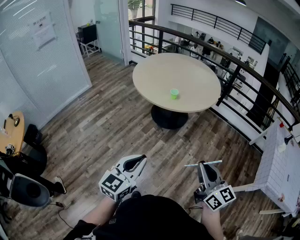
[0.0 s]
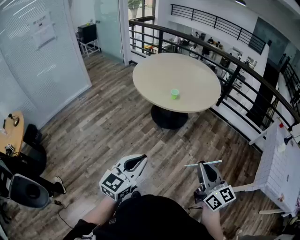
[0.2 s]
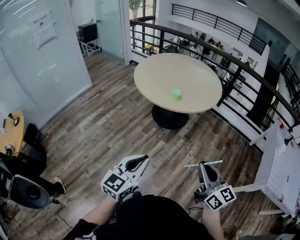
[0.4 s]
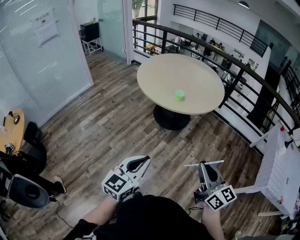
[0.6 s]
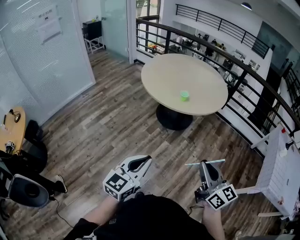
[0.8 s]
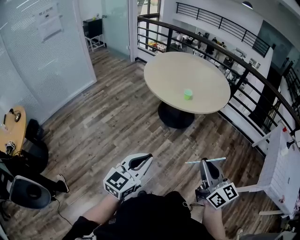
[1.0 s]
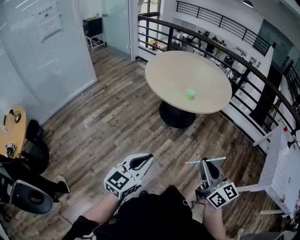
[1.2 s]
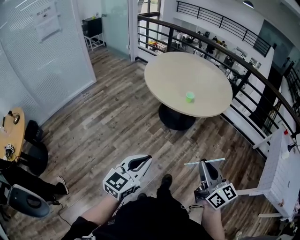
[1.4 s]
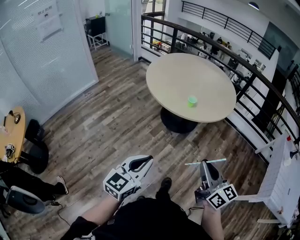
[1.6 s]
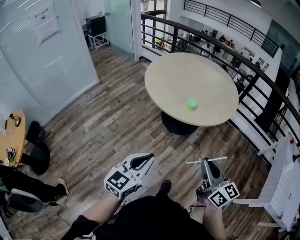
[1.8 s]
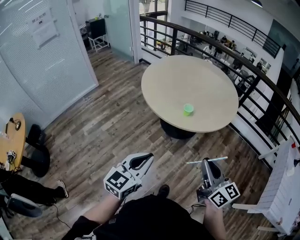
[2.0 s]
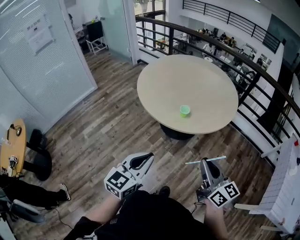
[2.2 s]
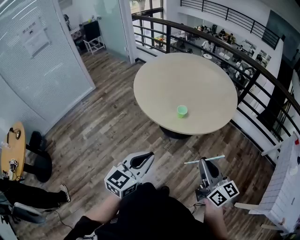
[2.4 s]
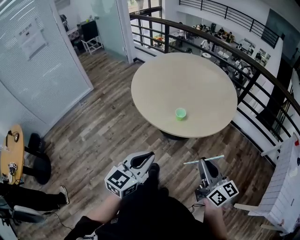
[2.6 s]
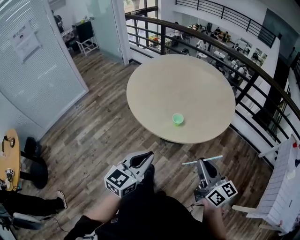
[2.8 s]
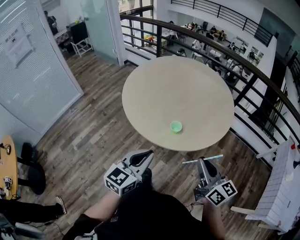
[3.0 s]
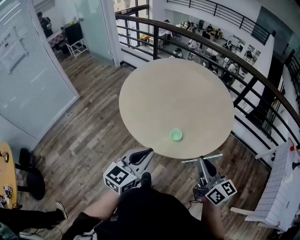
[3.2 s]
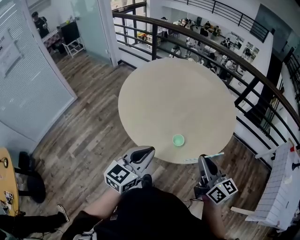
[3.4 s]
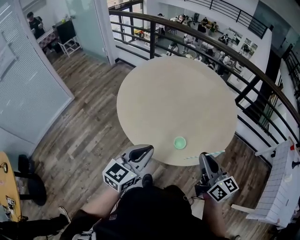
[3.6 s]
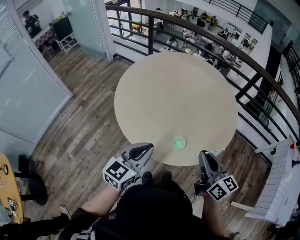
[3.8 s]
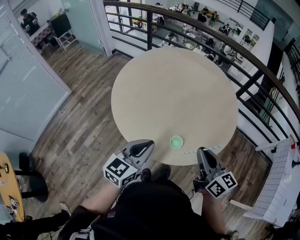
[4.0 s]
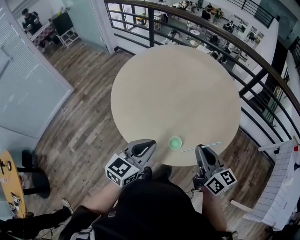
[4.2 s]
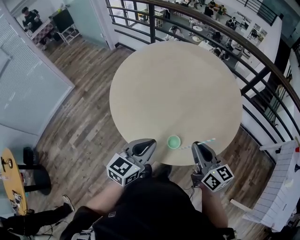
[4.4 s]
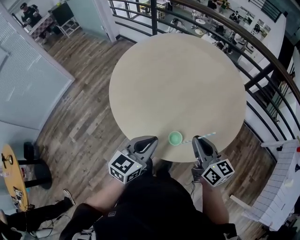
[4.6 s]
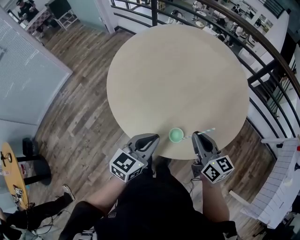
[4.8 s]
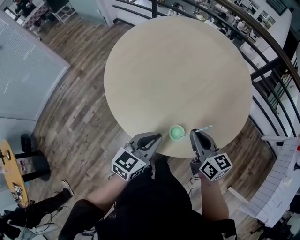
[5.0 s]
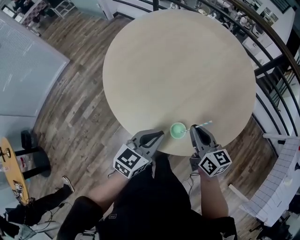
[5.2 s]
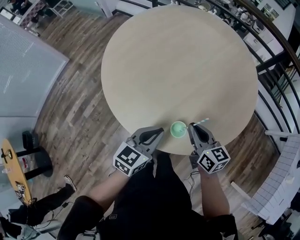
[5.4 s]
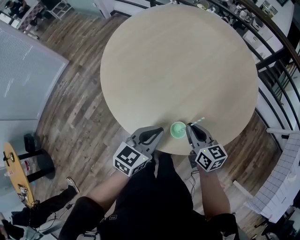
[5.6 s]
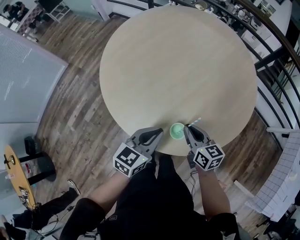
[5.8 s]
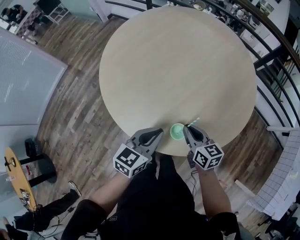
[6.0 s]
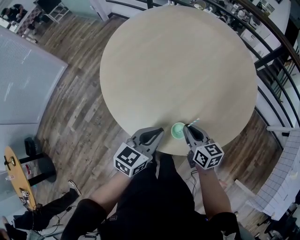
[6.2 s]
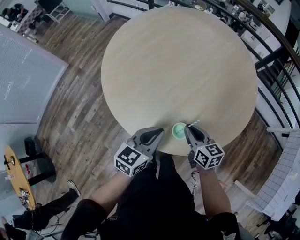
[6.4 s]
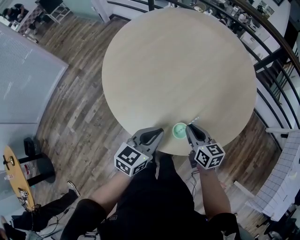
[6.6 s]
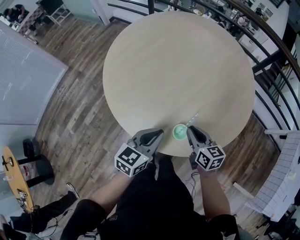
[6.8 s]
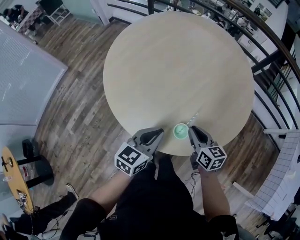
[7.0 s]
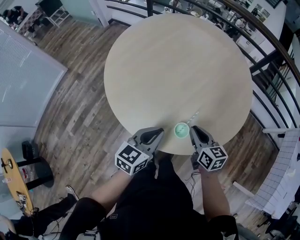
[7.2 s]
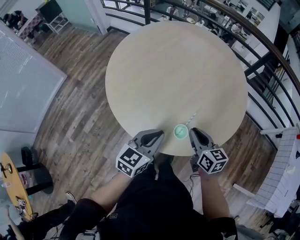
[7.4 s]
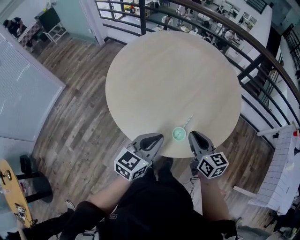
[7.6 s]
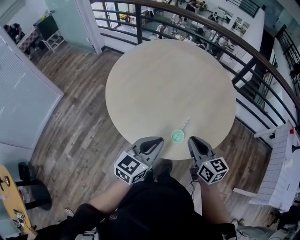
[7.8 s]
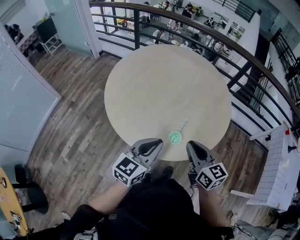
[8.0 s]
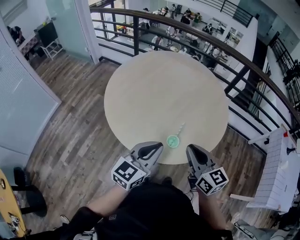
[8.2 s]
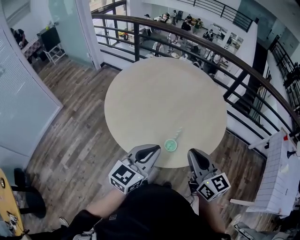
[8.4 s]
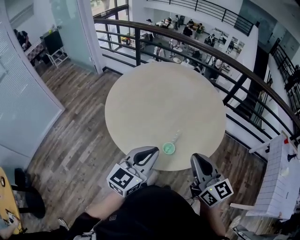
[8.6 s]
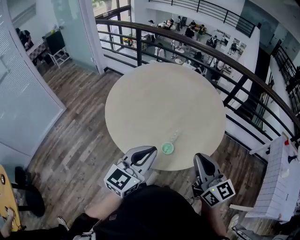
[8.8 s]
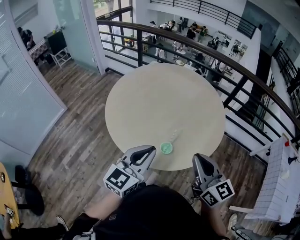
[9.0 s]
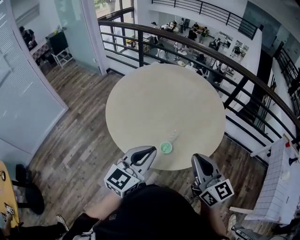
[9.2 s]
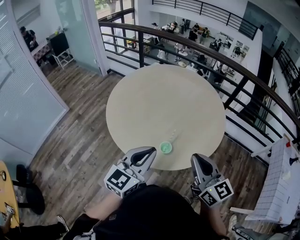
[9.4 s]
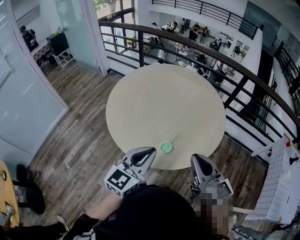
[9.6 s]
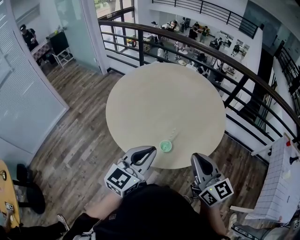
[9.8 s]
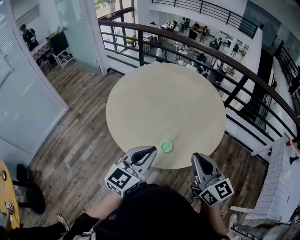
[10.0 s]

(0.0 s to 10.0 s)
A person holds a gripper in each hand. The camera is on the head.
0.0 s - 1.4 s: The right gripper moves to the left and forward, about 15 cm. Meanwhile the left gripper heads to the left, covering roughly 10 cm.
1.4 s - 2.8 s: Both grippers move forward, some 30 cm.
2.8 s - 4.2 s: Both grippers travel together forward, approximately 30 cm.
4.2 s - 5.8 s: The right gripper travels downward by approximately 20 cm. The left gripper shifts roughly 15 cm downward.
5.8 s - 7.2 s: The grippers stay close to where they were, moving slightly.
7.2 s - 8.6 s: Both grippers travel together upward and backward, some 25 cm. The right gripper changes its angle by roughly 30 degrees. Meanwhile the left gripper swivels approximately 20 degrees.
8.6 s - 10.0 s: There are only small adjustments of the grippers.

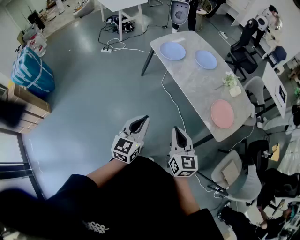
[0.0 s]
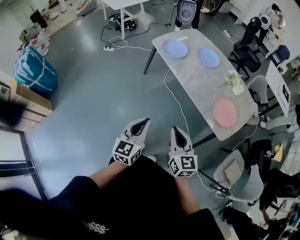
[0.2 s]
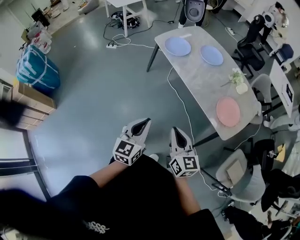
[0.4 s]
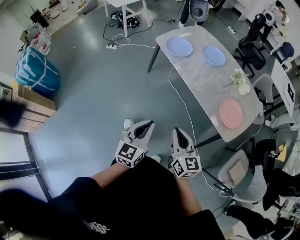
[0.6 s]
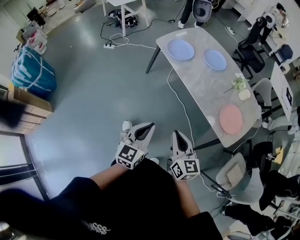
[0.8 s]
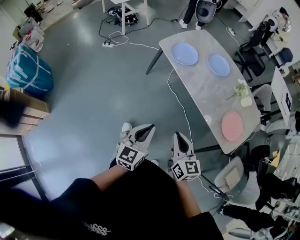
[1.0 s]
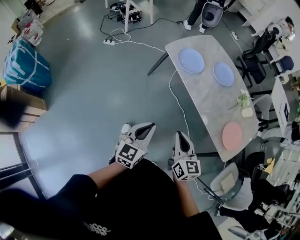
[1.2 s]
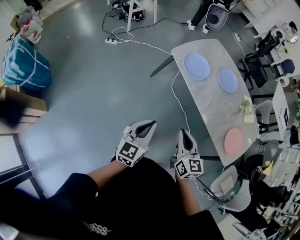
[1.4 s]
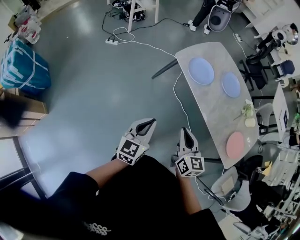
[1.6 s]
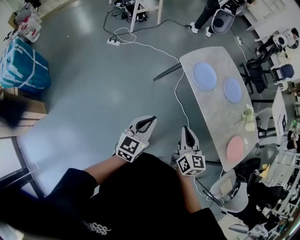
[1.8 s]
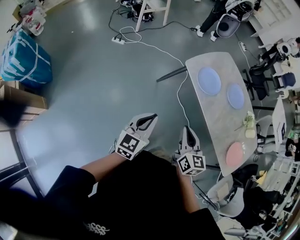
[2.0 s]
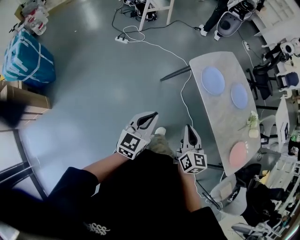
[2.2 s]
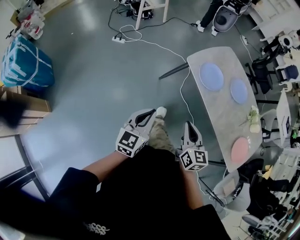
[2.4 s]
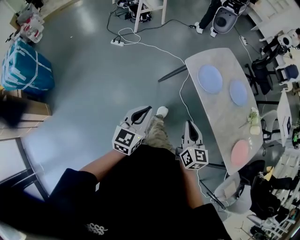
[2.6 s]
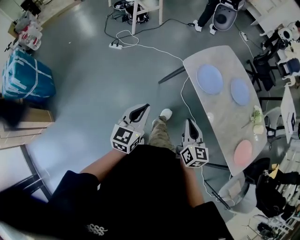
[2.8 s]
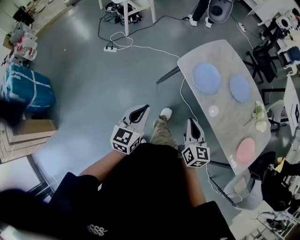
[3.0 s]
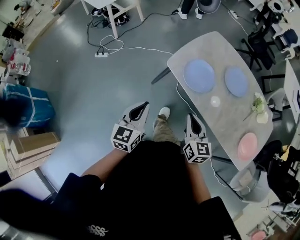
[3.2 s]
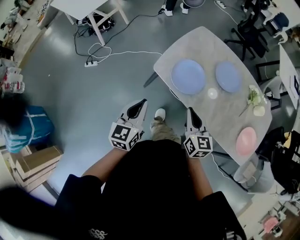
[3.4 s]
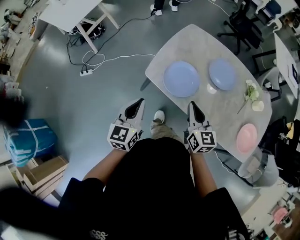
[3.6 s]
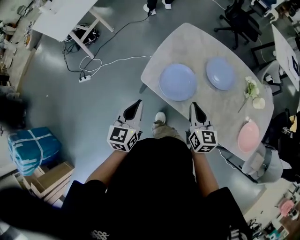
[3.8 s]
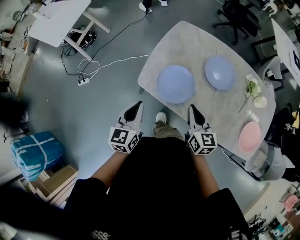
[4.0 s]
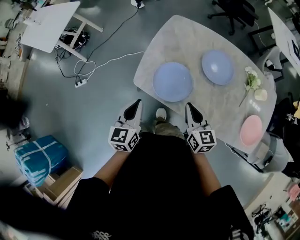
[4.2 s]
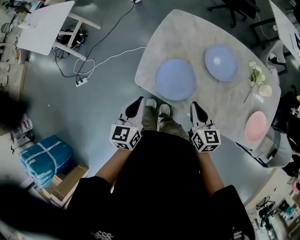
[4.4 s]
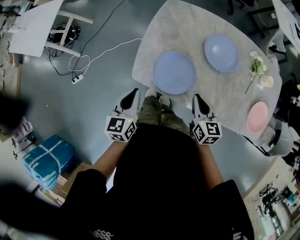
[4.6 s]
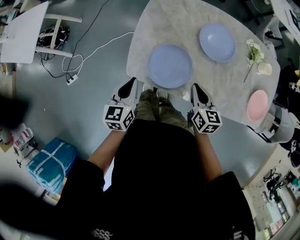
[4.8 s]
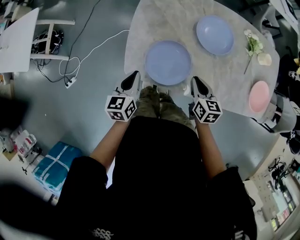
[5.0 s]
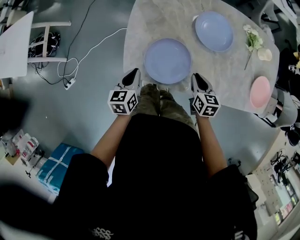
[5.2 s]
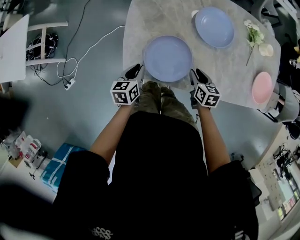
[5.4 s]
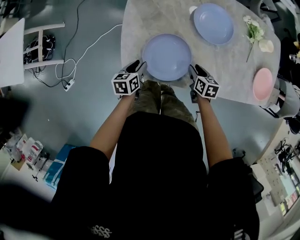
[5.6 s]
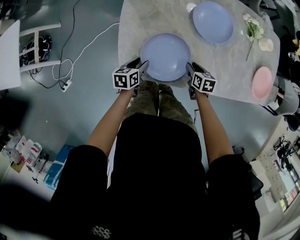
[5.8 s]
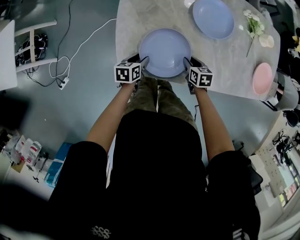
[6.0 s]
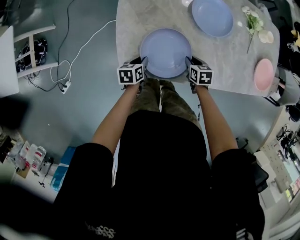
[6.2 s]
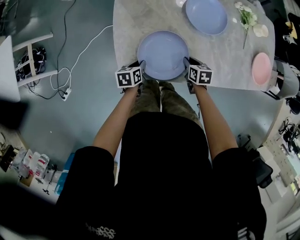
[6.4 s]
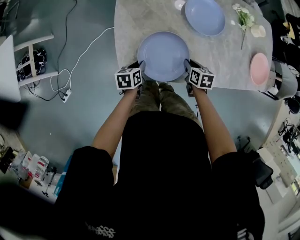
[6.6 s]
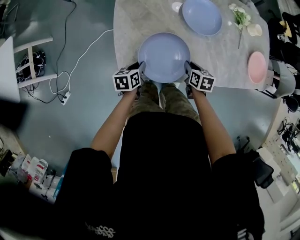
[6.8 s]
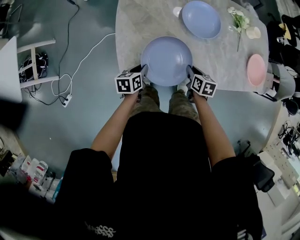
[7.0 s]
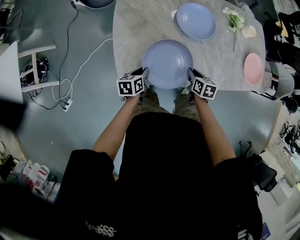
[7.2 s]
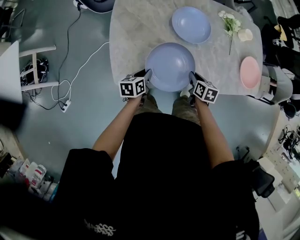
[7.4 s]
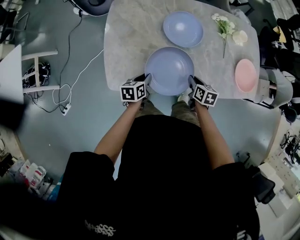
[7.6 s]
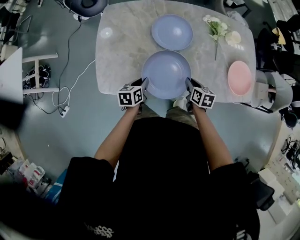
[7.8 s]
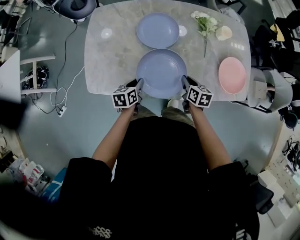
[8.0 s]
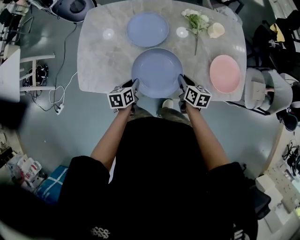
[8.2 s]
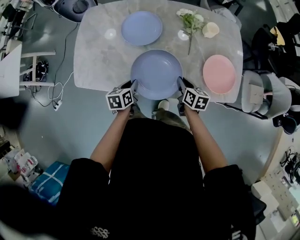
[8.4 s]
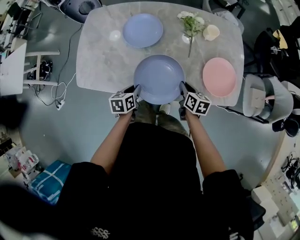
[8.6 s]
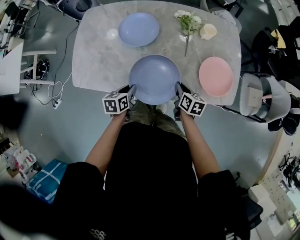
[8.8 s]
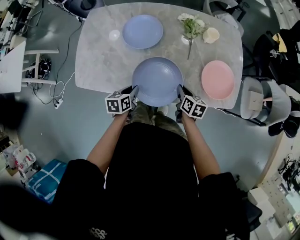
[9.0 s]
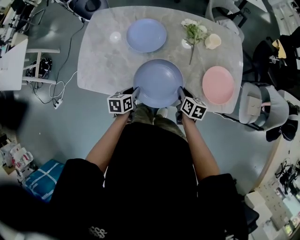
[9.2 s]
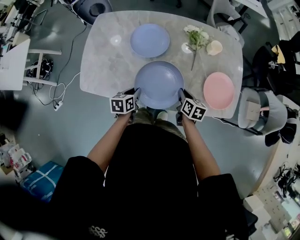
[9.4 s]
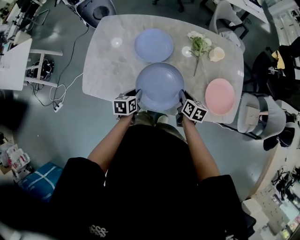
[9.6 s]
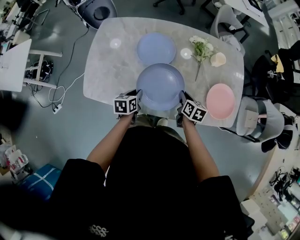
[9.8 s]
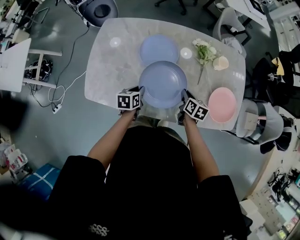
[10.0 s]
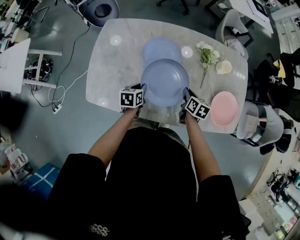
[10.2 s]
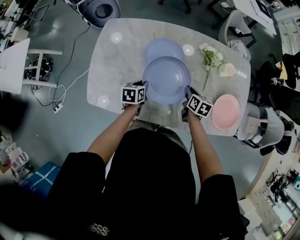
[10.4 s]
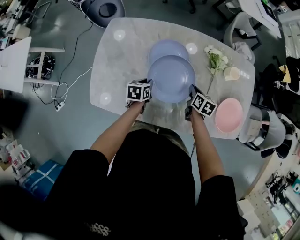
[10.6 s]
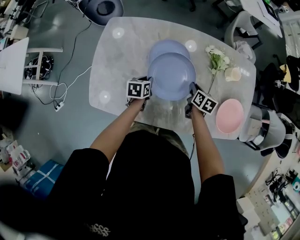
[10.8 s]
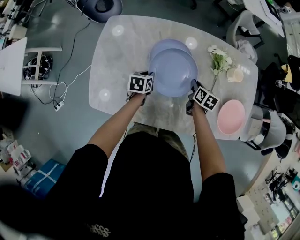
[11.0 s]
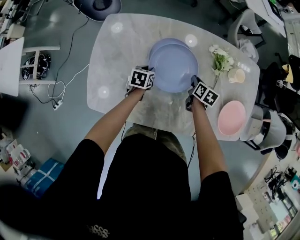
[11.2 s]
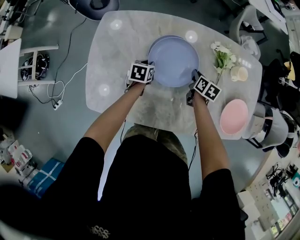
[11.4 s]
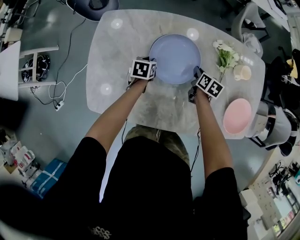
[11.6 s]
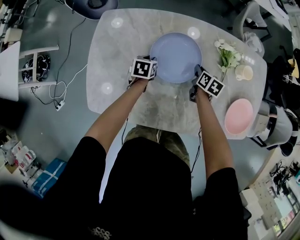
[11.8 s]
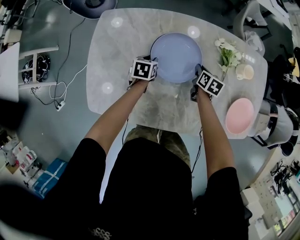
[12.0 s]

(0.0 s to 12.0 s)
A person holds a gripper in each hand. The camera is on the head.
0.0 s - 1.6 s: Both grippers move forward and to the left, some 35 cm.
1.6 s - 3.0 s: The right gripper is displaced forward by roughly 15 cm, while the left gripper travels forward and to the left by about 20 cm.
3.0 s - 4.4 s: The right gripper goes some 35 cm forward and to the right, and swivels approximately 20 degrees, while the left gripper shifts roughly 35 cm forward, and changes its angle by some 20 degrees.
4.4 s - 6.0 s: Both grippers travel together downward, roughly 30 cm. The right gripper angles its fingers downward, by approximately 30 degrees, and opens its fingers, while the left gripper swivels approximately 50 degrees, and opens.
6.0 s - 7.6 s: The grippers both shift to the right and upward by about 15 cm. The left gripper closes up.
7.6 s - 9.0 s: The two grippers go roughly 25 cm to the right.
9.0 s - 10.4 s: The grippers both shift forward and to the left by roughly 20 cm.
10.4 s - 12.0 s: The two grippers go some 15 cm forward and downward.

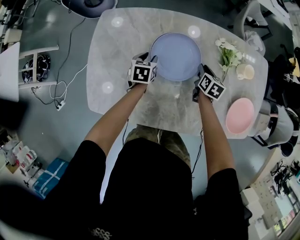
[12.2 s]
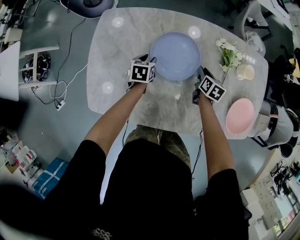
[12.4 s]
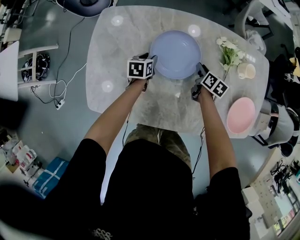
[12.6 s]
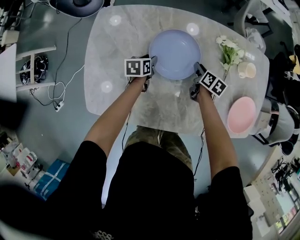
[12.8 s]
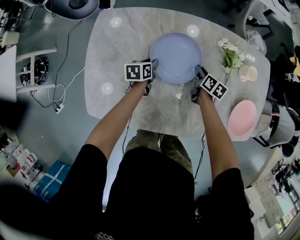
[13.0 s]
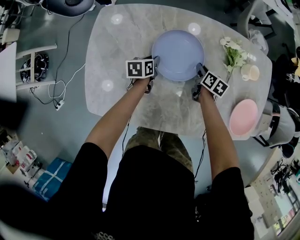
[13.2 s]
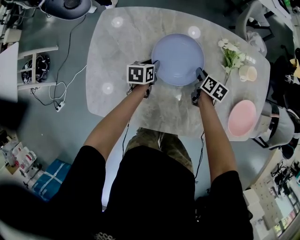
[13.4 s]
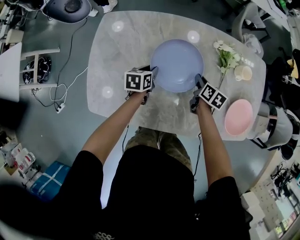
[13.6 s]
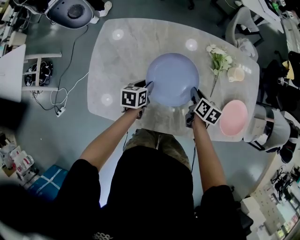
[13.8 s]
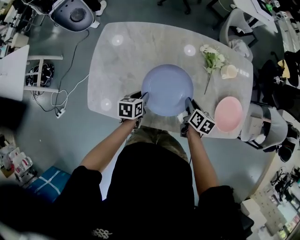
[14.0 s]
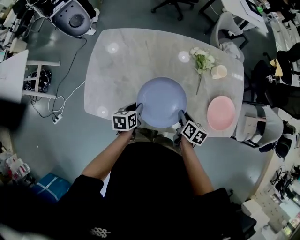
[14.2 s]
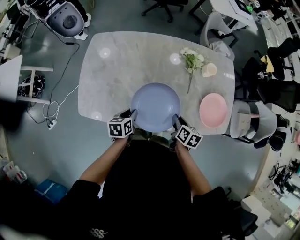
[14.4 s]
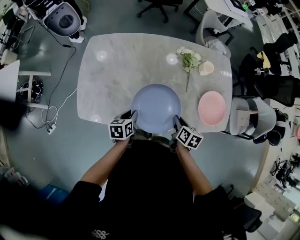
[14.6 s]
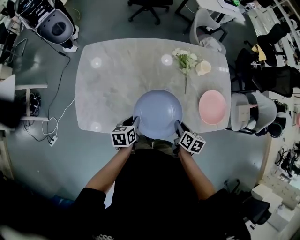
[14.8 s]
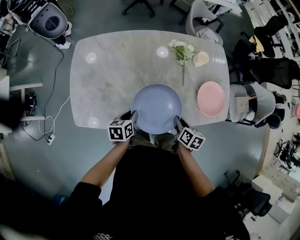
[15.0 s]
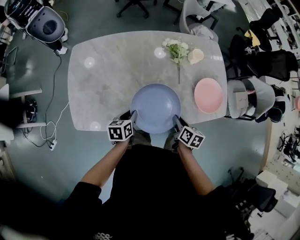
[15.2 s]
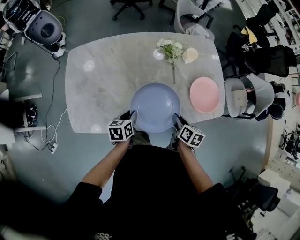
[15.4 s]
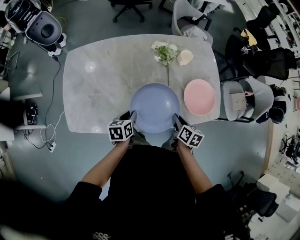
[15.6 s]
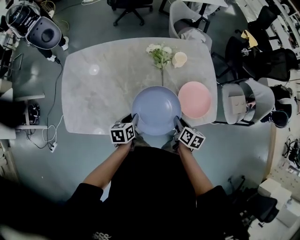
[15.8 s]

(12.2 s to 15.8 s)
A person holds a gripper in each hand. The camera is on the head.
12.2 s - 14.0 s: Both grippers move backward and upward, roughly 20 cm.
14.0 s - 15.8 s: The left gripper travels to the right by approximately 20 cm; the right gripper moves to the right and backward, approximately 25 cm.
